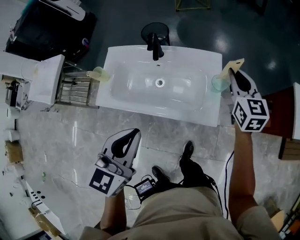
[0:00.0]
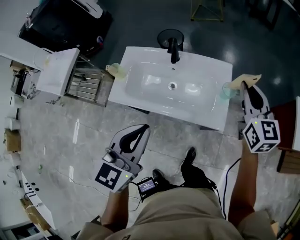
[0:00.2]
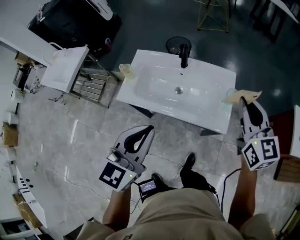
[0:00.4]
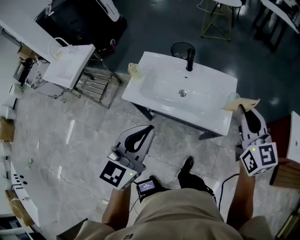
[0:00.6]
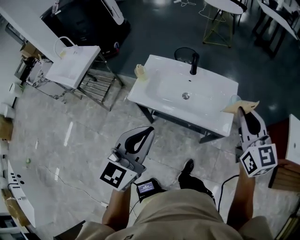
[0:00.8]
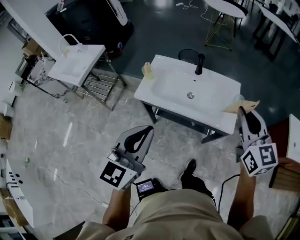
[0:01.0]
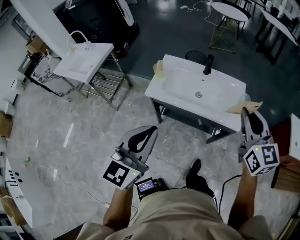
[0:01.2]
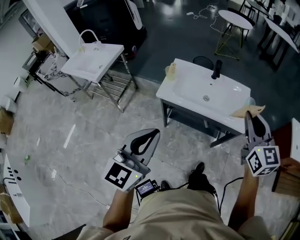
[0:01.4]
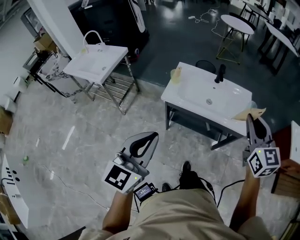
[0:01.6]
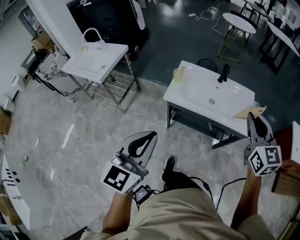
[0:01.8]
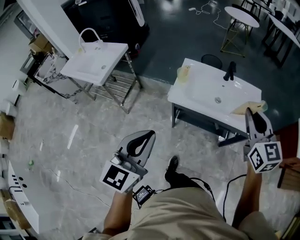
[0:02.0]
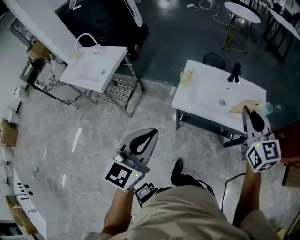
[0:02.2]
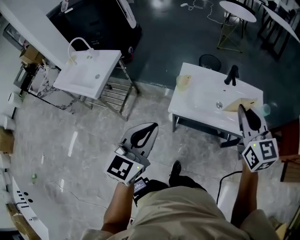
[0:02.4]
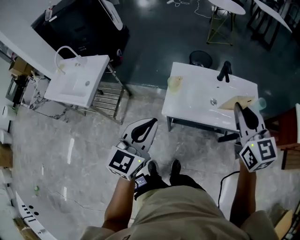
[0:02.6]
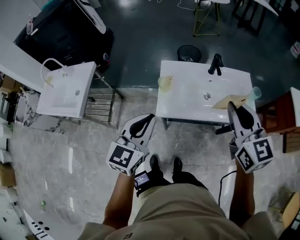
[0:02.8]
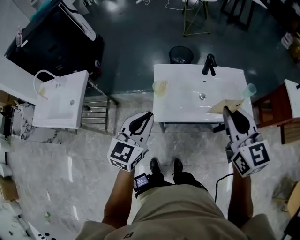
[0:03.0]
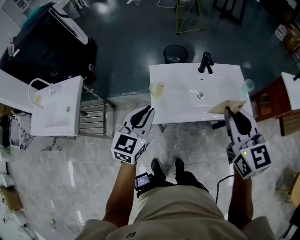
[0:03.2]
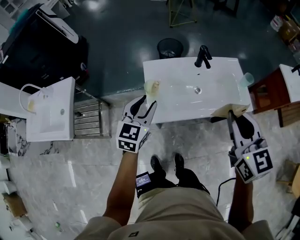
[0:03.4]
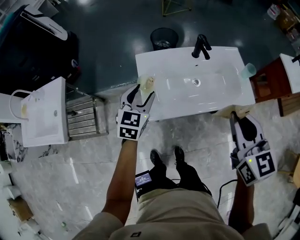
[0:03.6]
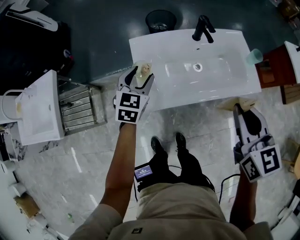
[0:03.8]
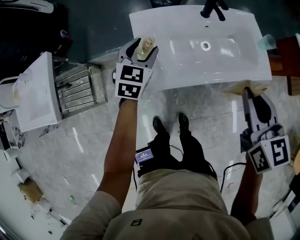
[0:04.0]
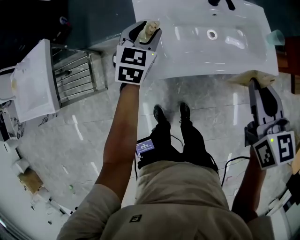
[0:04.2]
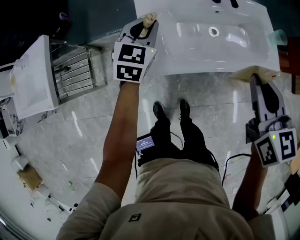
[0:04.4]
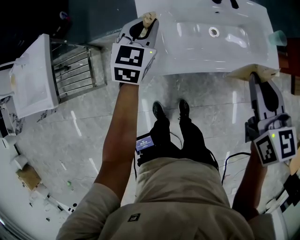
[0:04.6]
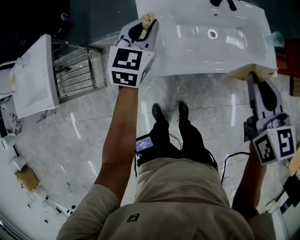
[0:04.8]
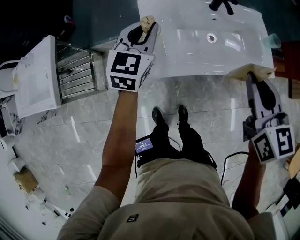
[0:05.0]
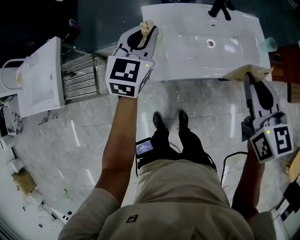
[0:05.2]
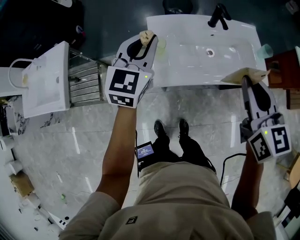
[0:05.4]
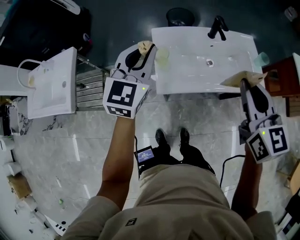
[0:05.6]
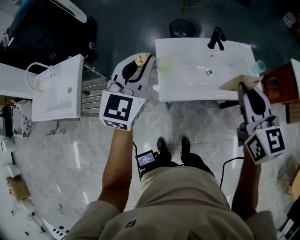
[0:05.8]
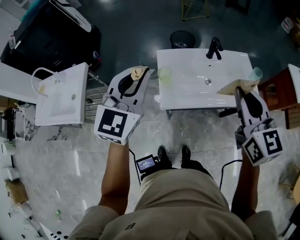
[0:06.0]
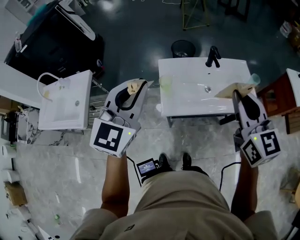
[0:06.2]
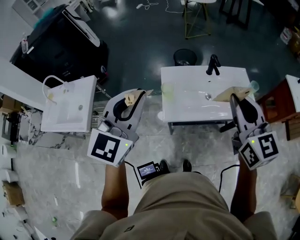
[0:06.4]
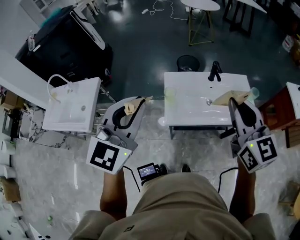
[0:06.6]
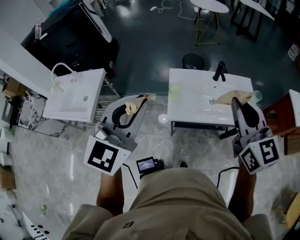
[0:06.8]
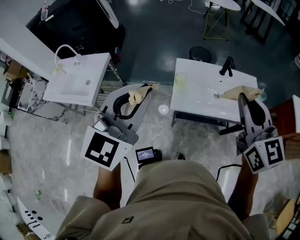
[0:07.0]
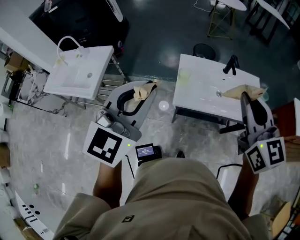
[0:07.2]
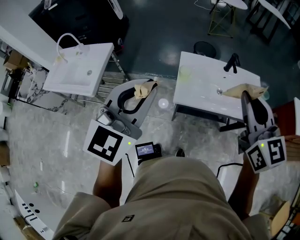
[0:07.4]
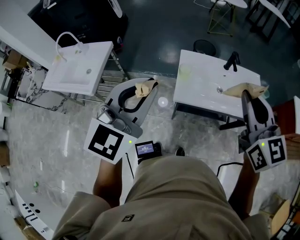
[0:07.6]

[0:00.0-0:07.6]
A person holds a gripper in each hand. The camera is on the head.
0.0 to 1.6 s: The two grippers travel together, backward and to the left, approximately 50 cm. The right gripper moves upward, some 20 cm; the left gripper moves upward, some 15 cm, and turns by roughly 20 degrees.
1.6 to 3.0 s: The right gripper heads to the left and forward, covering some 20 cm; the left gripper moves forward, approximately 30 cm, and changes its angle by approximately 20 degrees.
3.0 to 4.6 s: The right gripper is displaced downward by approximately 15 cm, while the left gripper is displaced forward and downward by about 30 cm, and opens, then closes again.
4.6 to 6.0 s: The right gripper goes some 20 cm upward, while the left gripper is displaced upward and backward by about 35 cm.
6.0 to 7.6 s: The left gripper shifts about 15 cm backward and upward. Meanwhile the right gripper heads to the left, upward and backward, covering about 10 cm.

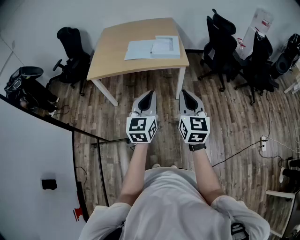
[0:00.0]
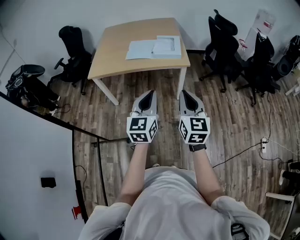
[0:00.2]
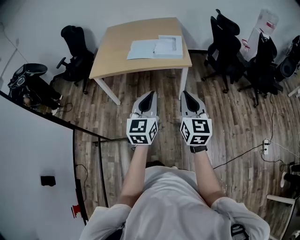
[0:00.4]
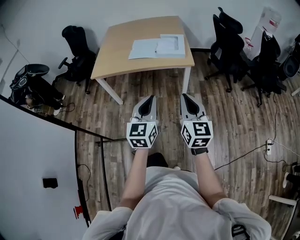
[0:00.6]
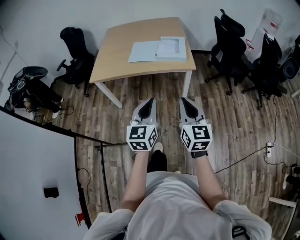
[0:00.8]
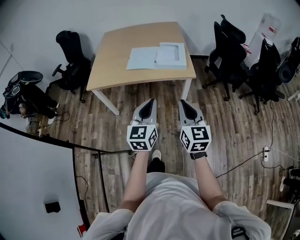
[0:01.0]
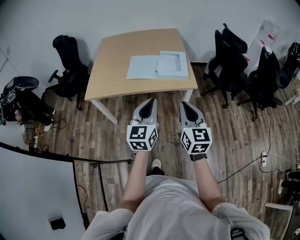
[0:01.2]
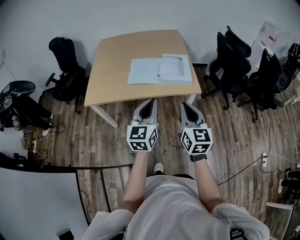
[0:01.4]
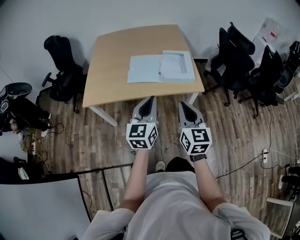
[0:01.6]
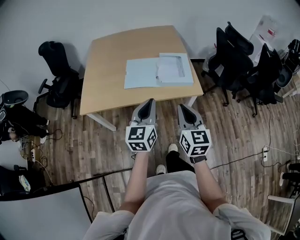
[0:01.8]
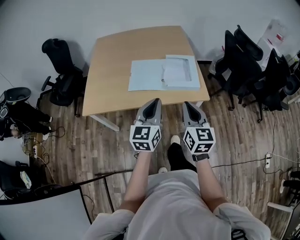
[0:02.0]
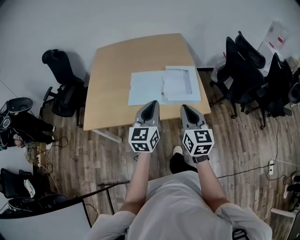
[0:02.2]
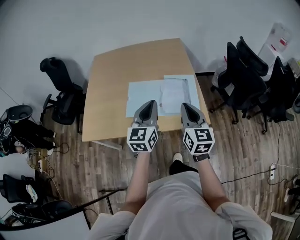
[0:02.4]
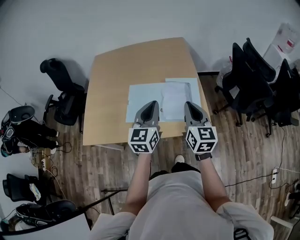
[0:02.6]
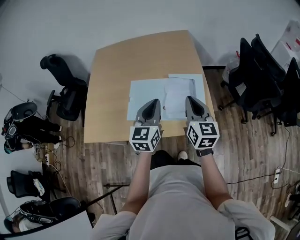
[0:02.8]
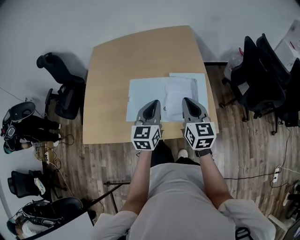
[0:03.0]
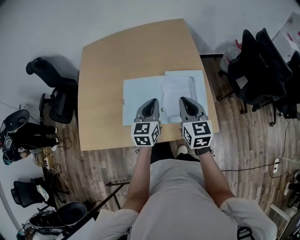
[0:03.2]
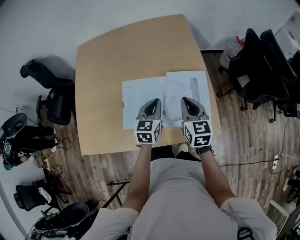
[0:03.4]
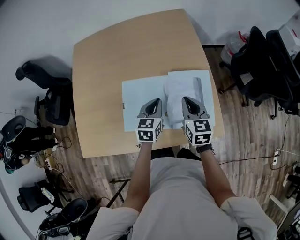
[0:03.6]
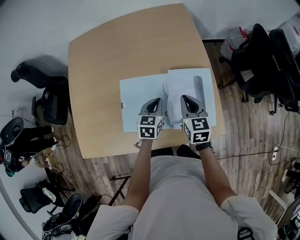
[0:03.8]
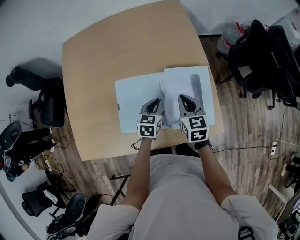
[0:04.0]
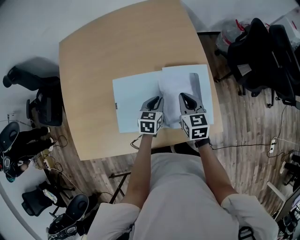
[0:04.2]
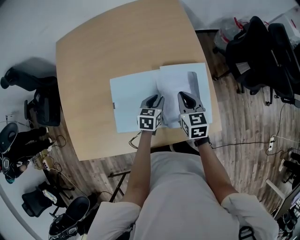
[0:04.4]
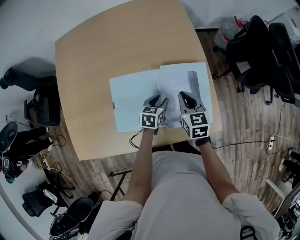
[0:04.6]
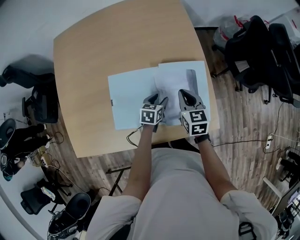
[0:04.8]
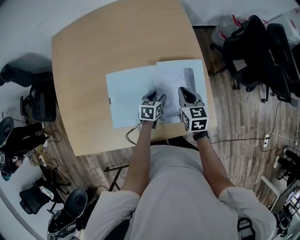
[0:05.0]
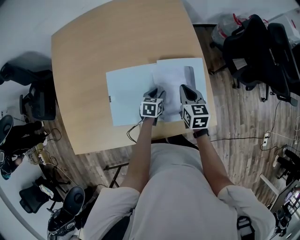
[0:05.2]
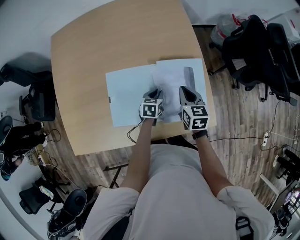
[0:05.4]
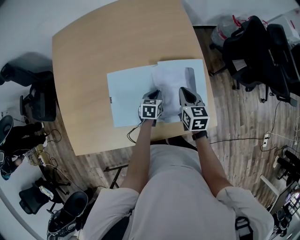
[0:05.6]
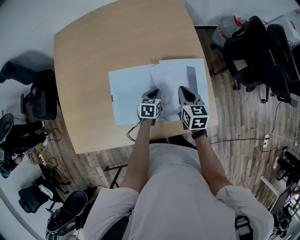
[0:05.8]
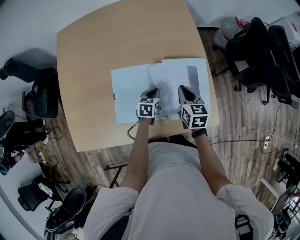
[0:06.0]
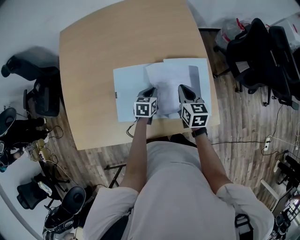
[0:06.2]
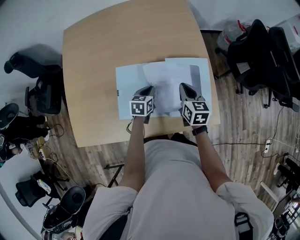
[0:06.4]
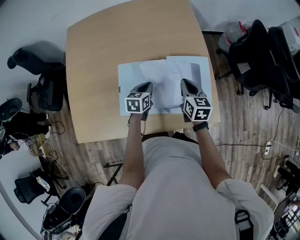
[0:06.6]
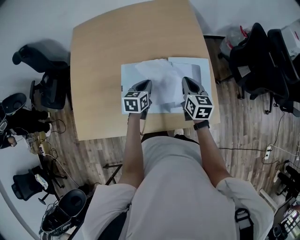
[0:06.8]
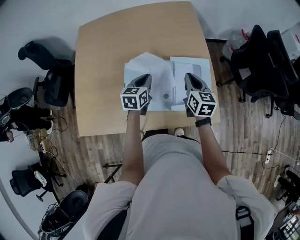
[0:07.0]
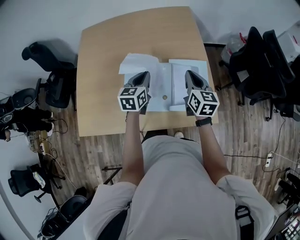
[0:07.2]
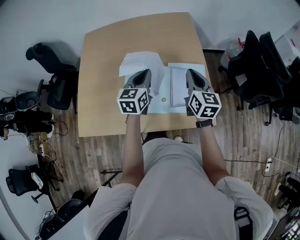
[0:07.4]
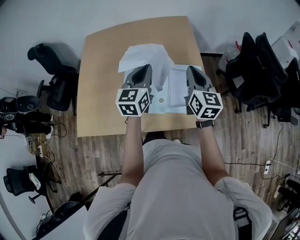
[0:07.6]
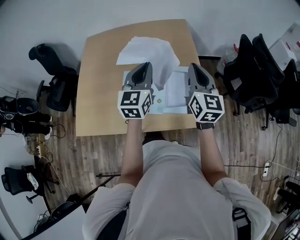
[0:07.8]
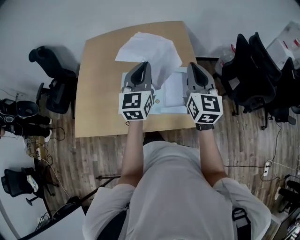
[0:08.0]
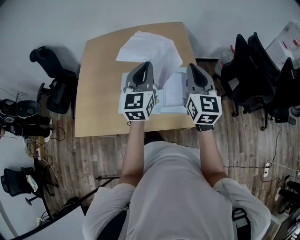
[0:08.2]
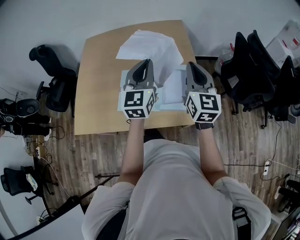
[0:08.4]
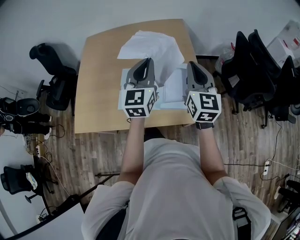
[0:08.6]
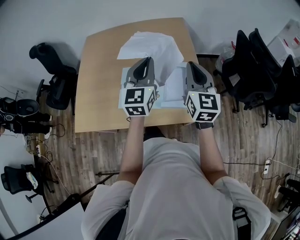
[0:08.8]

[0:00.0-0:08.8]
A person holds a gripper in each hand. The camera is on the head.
0.0 to 1.4 s: The left gripper is displaced forward by some 25 cm; the right gripper shifts roughly 25 cm forward and to the left.
1.4 to 3.0 s: The grippers both shift forward by some 40 cm.
3.0 to 4.4 s: The grippers both shift downward and forward by about 25 cm. The left gripper turns by some 40 degrees, and opens its fingers, while the right gripper swivels roughly 20 degrees.
4.4 to 5.8 s: The left gripper closes up.
5.8 to 7.4 s: The left gripper is displaced upward by approximately 30 cm, and turns by about 30 degrees; the right gripper heads upward, covering some 20 cm, and rotates roughly 20 degrees.
7.4 to 8.8 s: The right gripper is displaced upward and backward by roughly 10 cm; the left gripper heads upward, backward and to the right, covering approximately 15 cm, and rotates about 20 degrees.

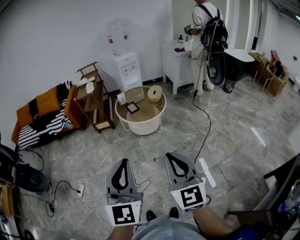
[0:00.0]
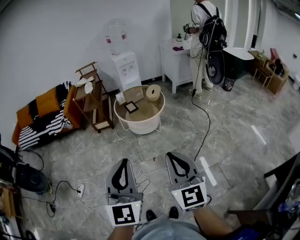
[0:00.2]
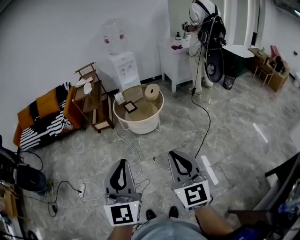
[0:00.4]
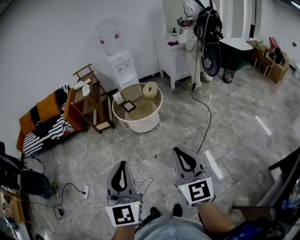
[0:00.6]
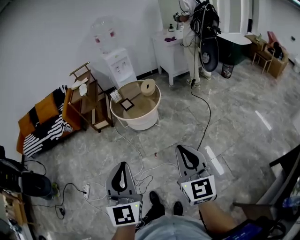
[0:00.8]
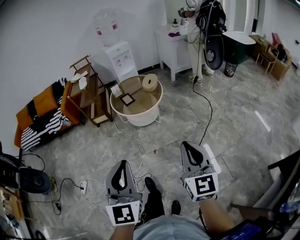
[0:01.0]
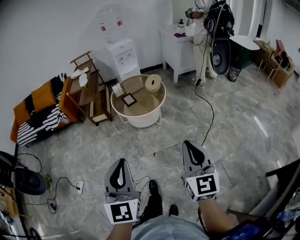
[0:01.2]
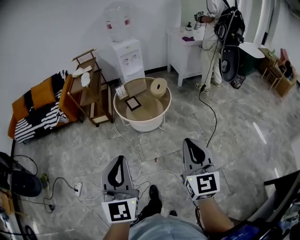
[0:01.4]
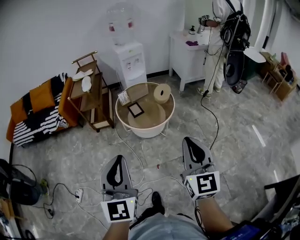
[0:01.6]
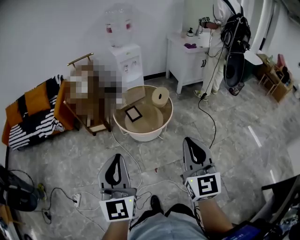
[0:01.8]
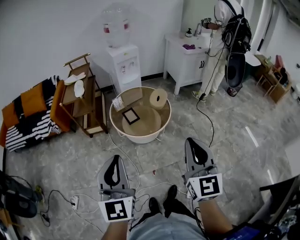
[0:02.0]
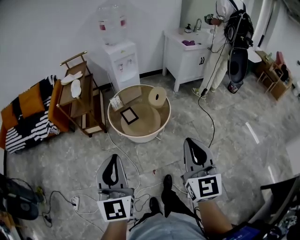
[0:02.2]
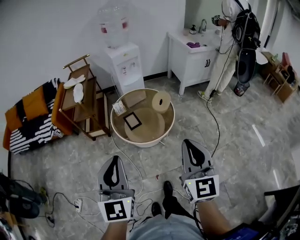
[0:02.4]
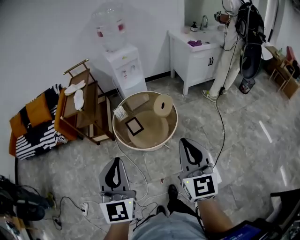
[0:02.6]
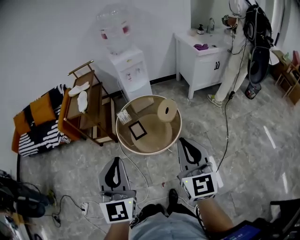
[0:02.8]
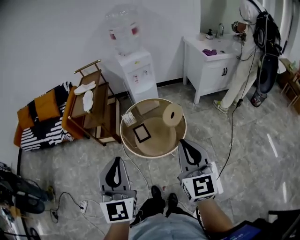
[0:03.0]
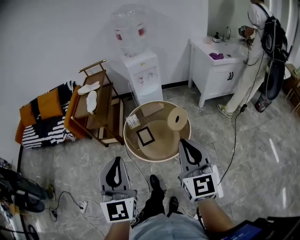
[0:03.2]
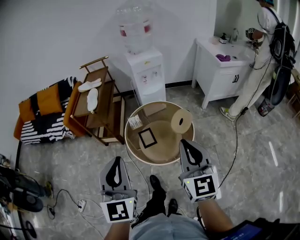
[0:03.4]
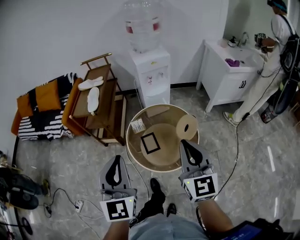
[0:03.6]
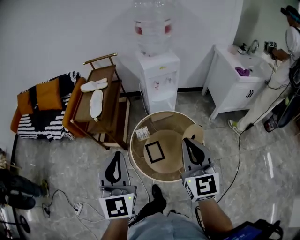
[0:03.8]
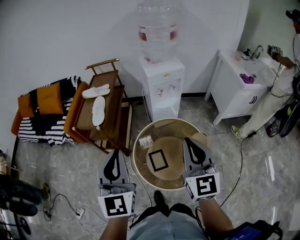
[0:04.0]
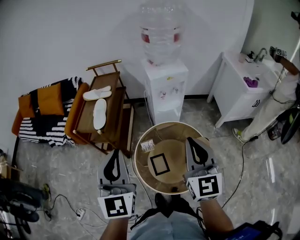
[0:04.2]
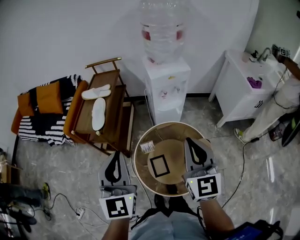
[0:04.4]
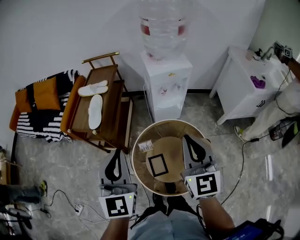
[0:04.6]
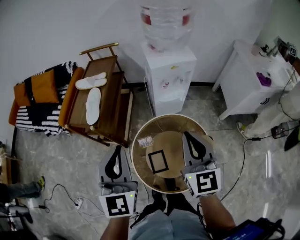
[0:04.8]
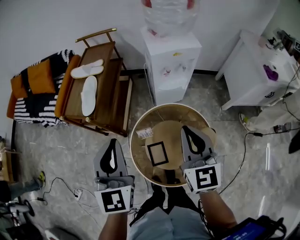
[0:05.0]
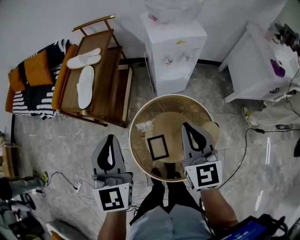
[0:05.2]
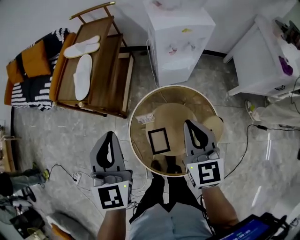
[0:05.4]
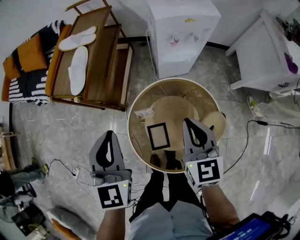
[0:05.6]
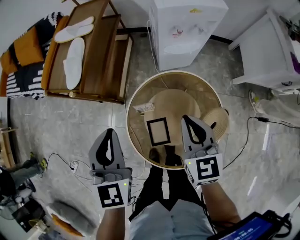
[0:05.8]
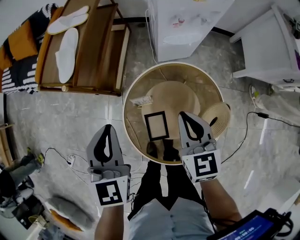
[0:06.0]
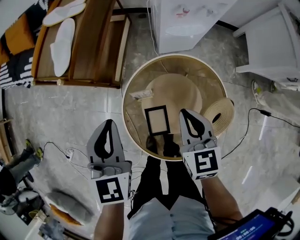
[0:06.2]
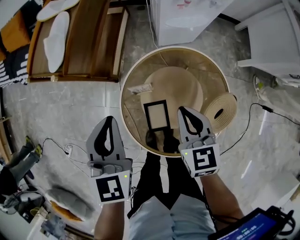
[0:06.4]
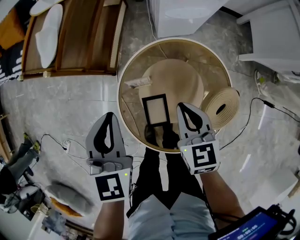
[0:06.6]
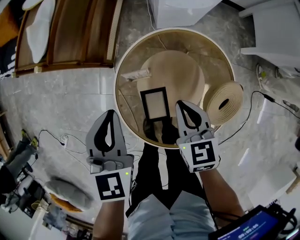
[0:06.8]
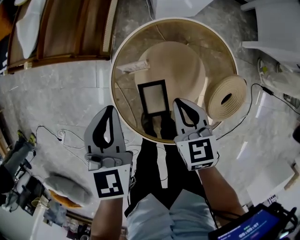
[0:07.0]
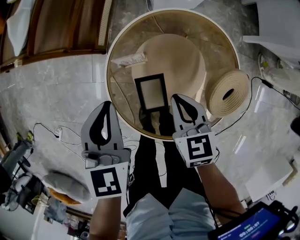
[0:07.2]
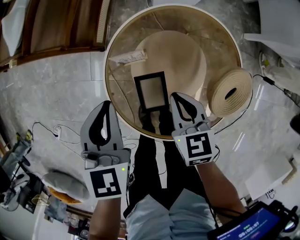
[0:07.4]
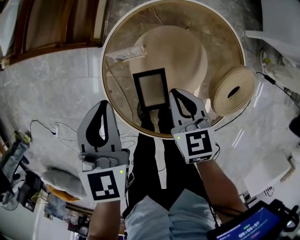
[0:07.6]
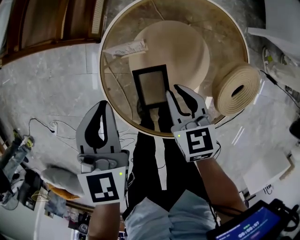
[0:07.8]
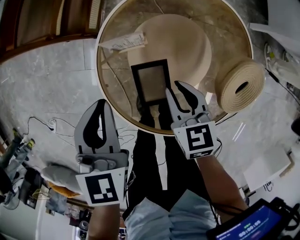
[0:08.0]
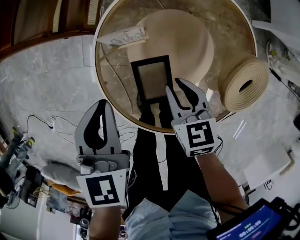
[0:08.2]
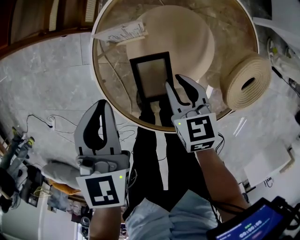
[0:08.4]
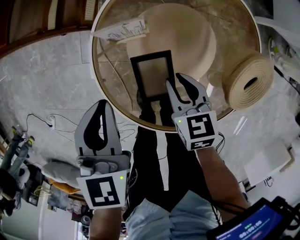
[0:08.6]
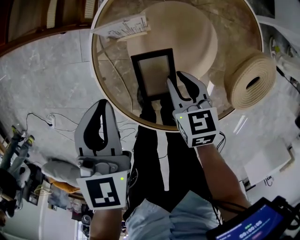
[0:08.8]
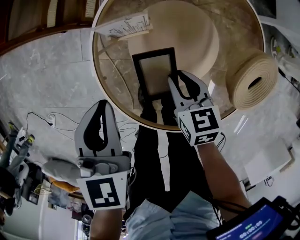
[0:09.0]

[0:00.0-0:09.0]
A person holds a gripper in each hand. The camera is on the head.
0.0 to 1.6 s: The two grippers go some 25 cm forward.
1.6 to 3.0 s: Both grippers move forward, some 30 cm.
3.0 to 4.4 s: Both grippers travel together forward, roughly 40 cm.
4.4 to 6.0 s: The two grippers go approximately 30 cm downward and forward. The right gripper turns by roughly 30 degrees, while the left gripper swivels roughly 30 degrees.
6.0 to 7.6 s: The grippers both shift downward by some 20 cm.
7.6 to 9.0 s: The right gripper shifts some 10 cm downward, and opens its fingers. Meanwhile the left gripper is displaced downward by roughly 5 cm.
